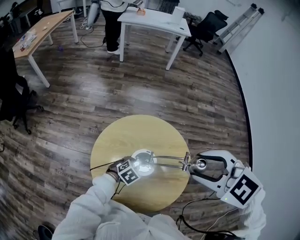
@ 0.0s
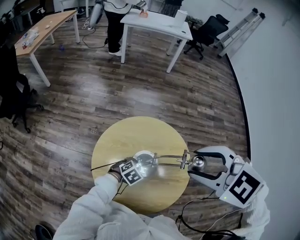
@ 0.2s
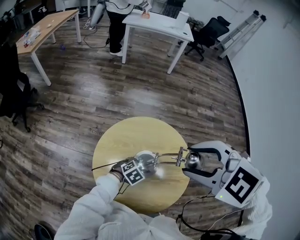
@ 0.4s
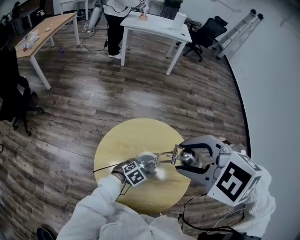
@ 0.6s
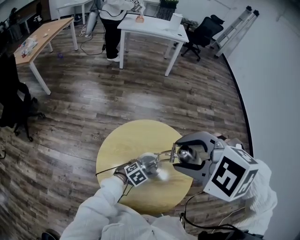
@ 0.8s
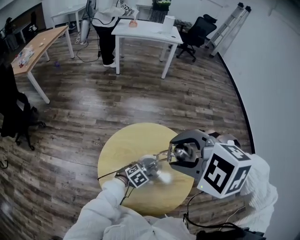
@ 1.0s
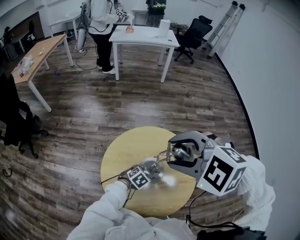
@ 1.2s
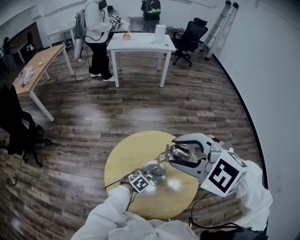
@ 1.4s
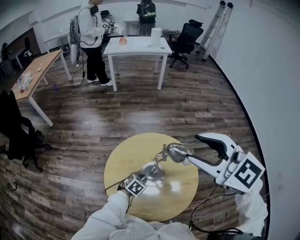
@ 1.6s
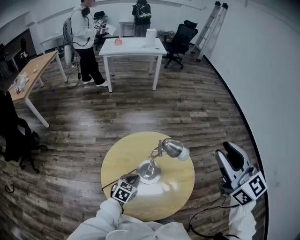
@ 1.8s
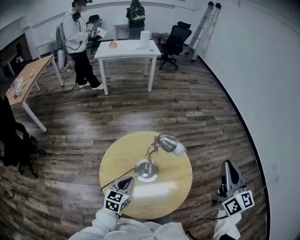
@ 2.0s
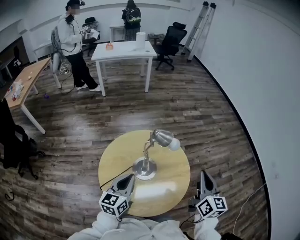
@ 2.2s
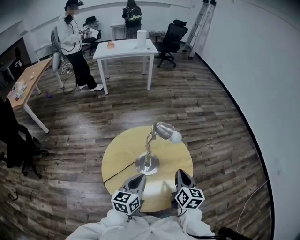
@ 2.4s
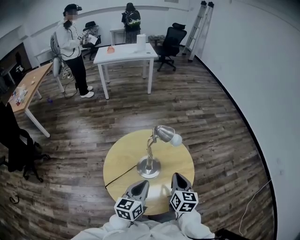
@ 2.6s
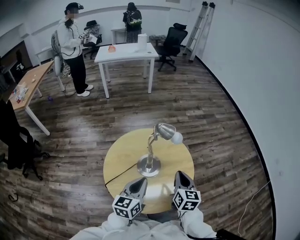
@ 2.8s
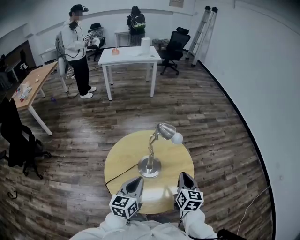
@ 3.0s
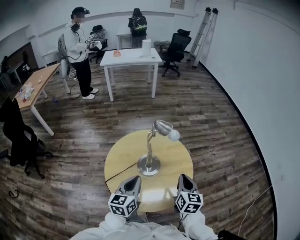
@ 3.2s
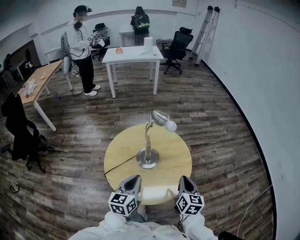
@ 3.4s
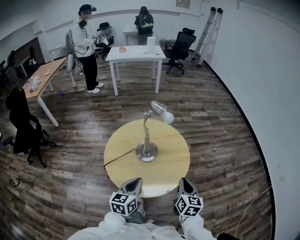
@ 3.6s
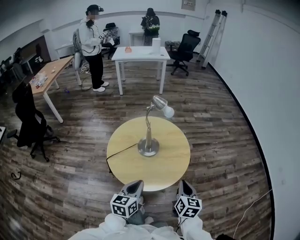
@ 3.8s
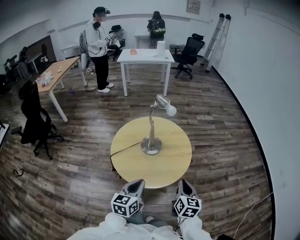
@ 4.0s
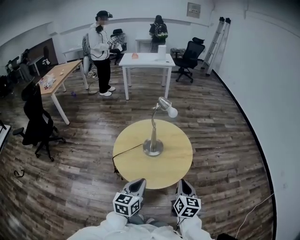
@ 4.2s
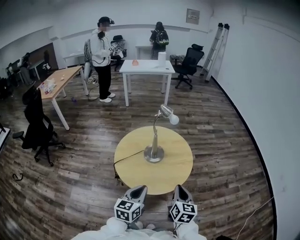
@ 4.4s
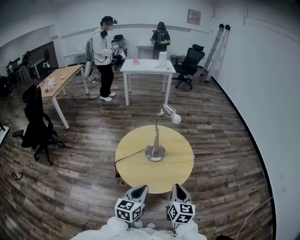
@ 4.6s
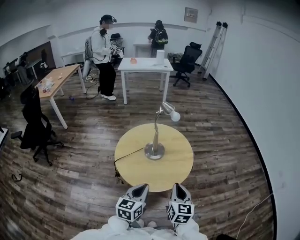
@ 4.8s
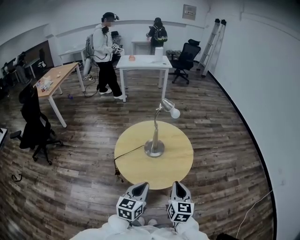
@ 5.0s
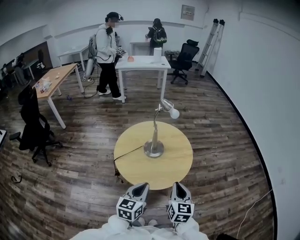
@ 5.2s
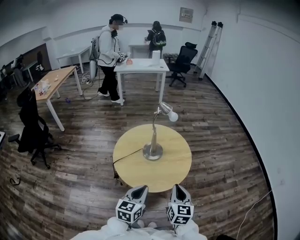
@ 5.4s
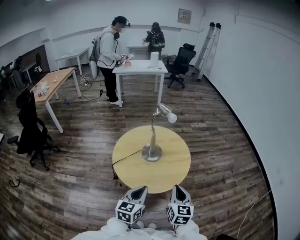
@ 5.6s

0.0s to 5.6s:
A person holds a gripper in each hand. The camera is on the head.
0.0s to 1.4s: The right gripper moves to the left and upward, roughly 10 cm.
1.4s to 2.8s: The right gripper is displaced downward and to the right by roughly 30 cm, changes its angle by roughly 90 degrees, and closes its fingers. The left gripper travels upward and backward by roughly 25 cm, angles its fingers upward, by some 50 degrees, and closes its fingers.
2.8s to 4.2s: The left gripper moves backward, about 20 cm. Meanwhile the right gripper travels backward and to the right by about 20 cm.
4.2s to 5.6s: The right gripper moves to the left, approximately 5 cm.

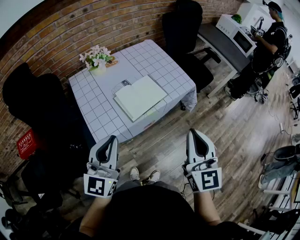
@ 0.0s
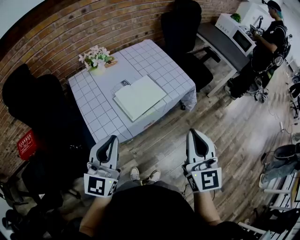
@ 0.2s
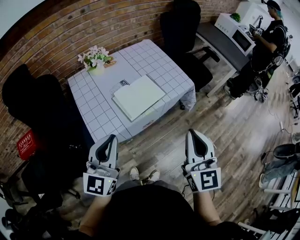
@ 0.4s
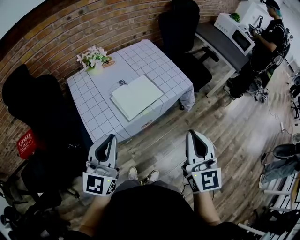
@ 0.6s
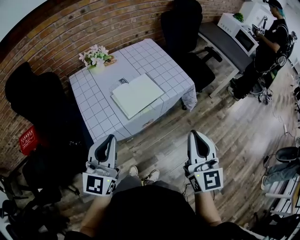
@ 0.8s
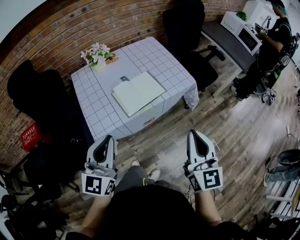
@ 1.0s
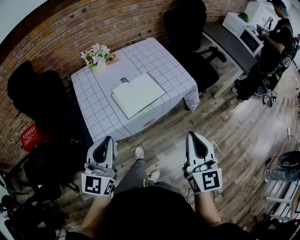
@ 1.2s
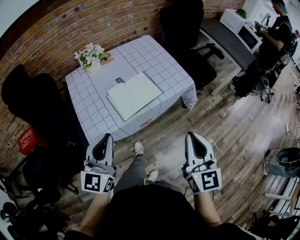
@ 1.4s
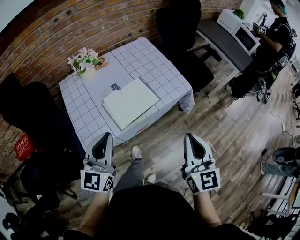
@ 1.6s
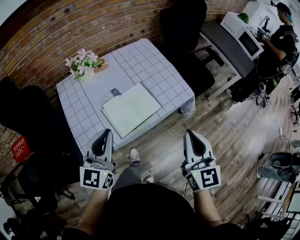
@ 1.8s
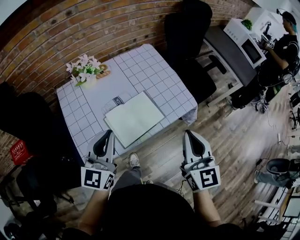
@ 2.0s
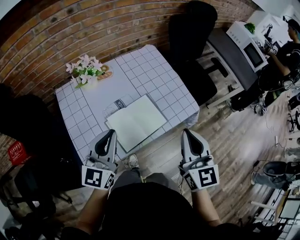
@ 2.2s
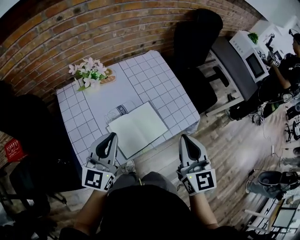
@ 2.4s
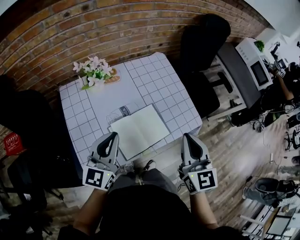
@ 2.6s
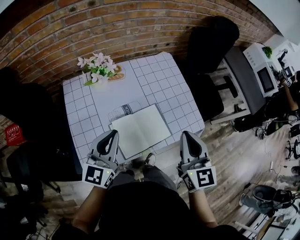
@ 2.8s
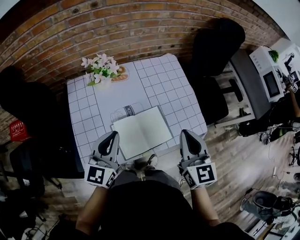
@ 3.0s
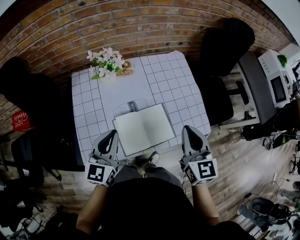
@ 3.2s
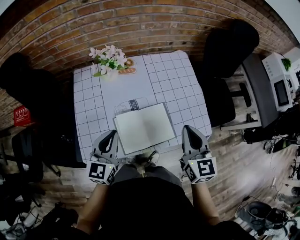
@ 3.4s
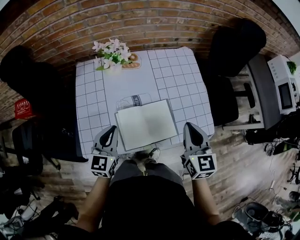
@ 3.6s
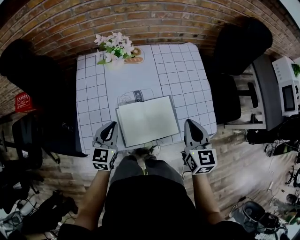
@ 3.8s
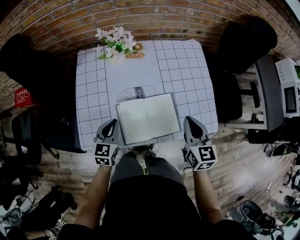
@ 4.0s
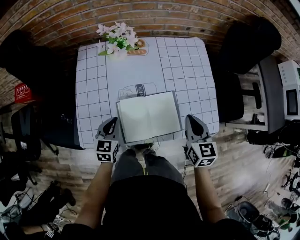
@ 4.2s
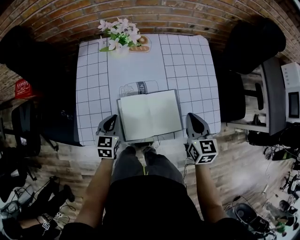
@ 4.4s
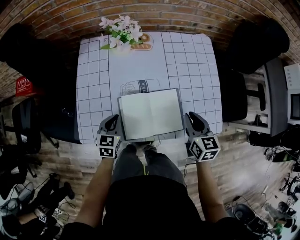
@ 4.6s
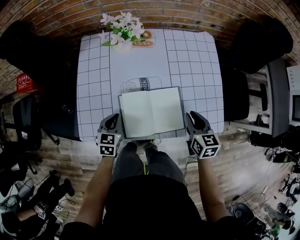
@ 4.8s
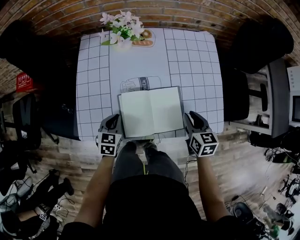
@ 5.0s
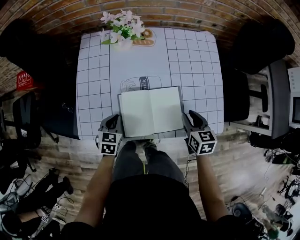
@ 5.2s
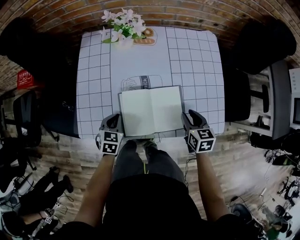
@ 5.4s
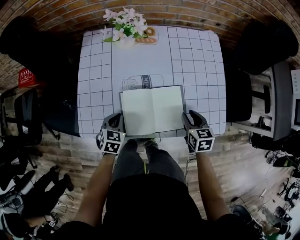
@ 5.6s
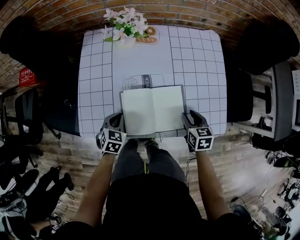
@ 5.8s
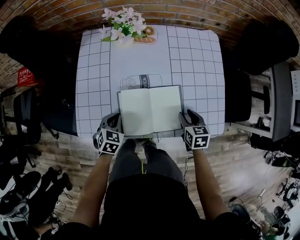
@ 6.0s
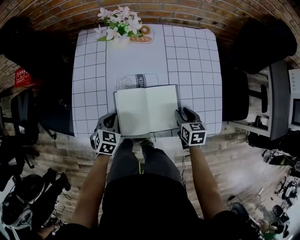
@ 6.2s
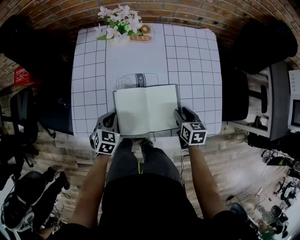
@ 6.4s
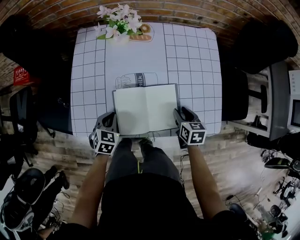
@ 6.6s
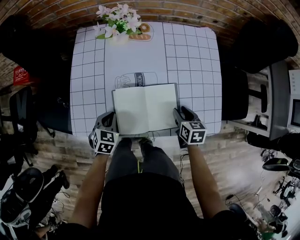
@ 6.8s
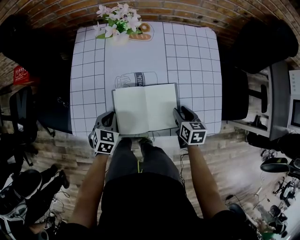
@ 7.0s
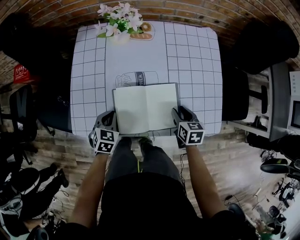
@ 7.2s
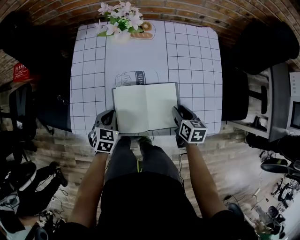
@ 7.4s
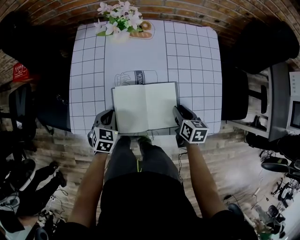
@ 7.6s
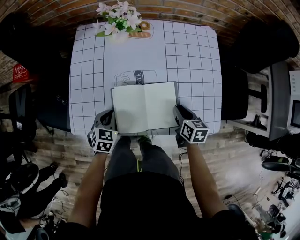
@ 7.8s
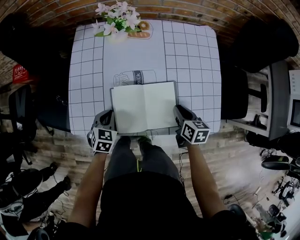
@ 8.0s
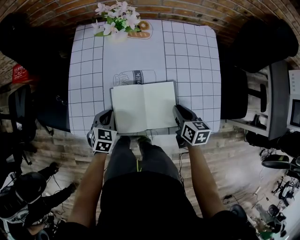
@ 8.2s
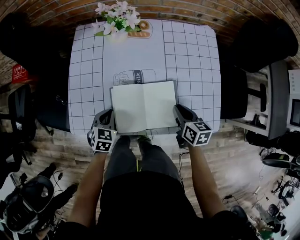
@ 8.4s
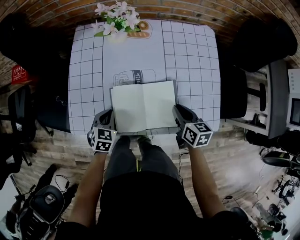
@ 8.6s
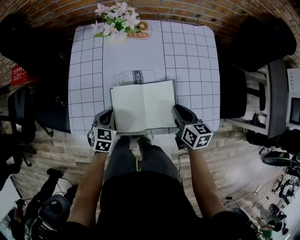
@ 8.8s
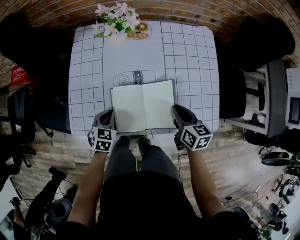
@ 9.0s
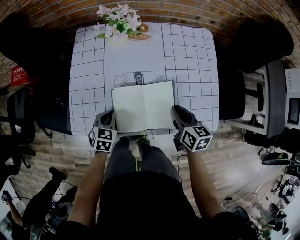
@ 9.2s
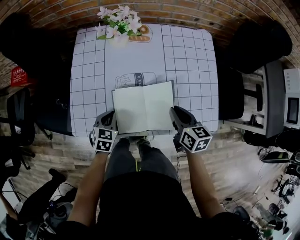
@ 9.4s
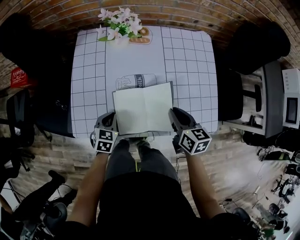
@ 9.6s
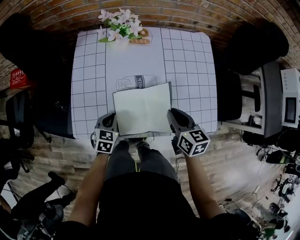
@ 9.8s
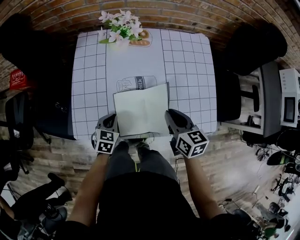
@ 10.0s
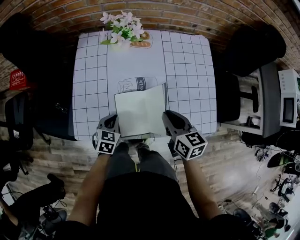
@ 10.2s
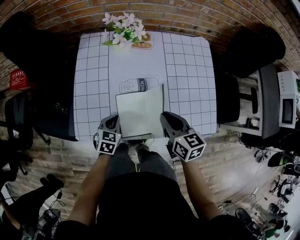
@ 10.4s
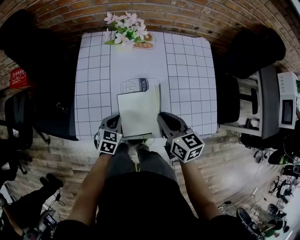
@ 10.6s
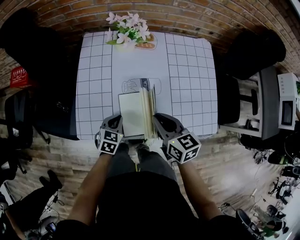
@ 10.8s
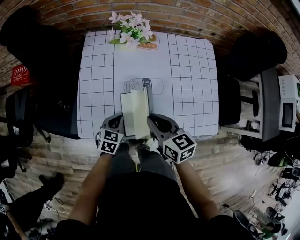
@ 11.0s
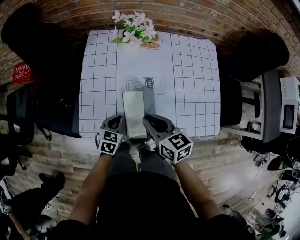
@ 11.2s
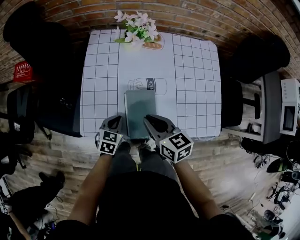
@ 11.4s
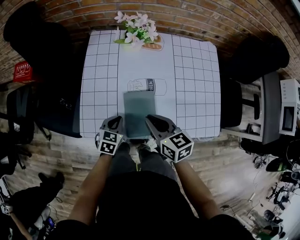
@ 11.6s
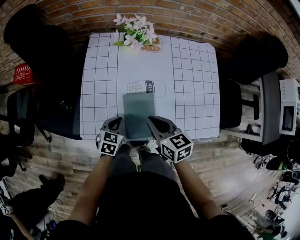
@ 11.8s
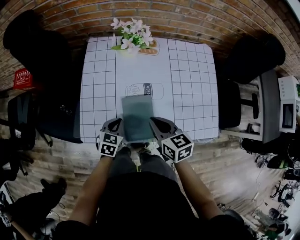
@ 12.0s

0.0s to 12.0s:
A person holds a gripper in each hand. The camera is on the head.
0.0s to 1.6s: The right gripper shifts approximately 10 cm forward, to the right and downward, while the left gripper heads forward, covering approximately 10 cm.
1.6s to 3.0s: The grippers both shift forward by approximately 25 cm.
3.0s to 4.4s: The two grippers go roughly 20 cm downward. The right gripper turns by roughly 20 degrees. Meanwhile the left gripper points its fingers about 30 degrees further downward.
4.4s to 6.0s: The right gripper goes roughly 15 cm downward, swivels roughly 20 degrees, and opens. Meanwhile the left gripper travels downward by roughly 5 cm, and rotates approximately 20 degrees.
6.0s to 7.6s: The grippers move only a little.
7.6s to 9.0s: The right gripper goes some 5 cm upward.
9.0s to 10.4s: The right gripper moves to the left and upward, approximately 10 cm.
10.4s to 12.0s: The right gripper shifts about 5 cm to the left.

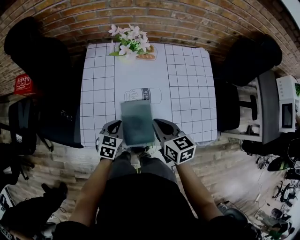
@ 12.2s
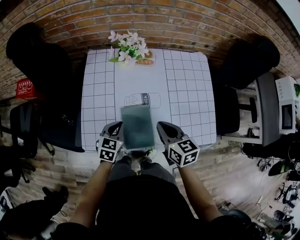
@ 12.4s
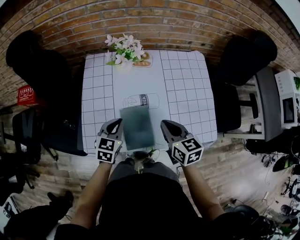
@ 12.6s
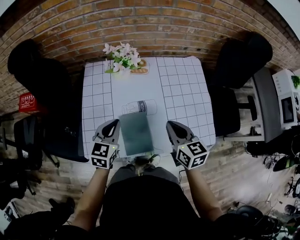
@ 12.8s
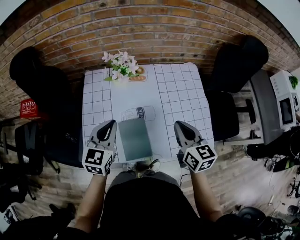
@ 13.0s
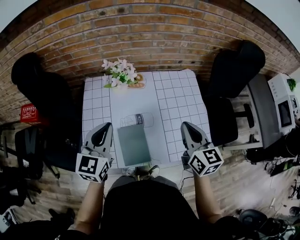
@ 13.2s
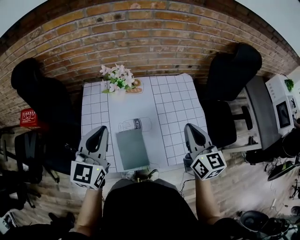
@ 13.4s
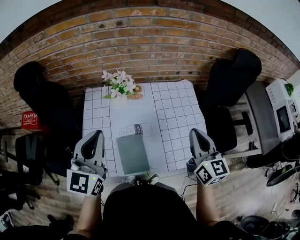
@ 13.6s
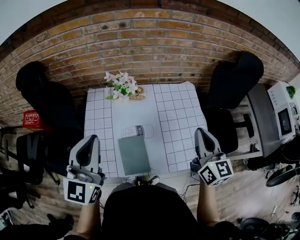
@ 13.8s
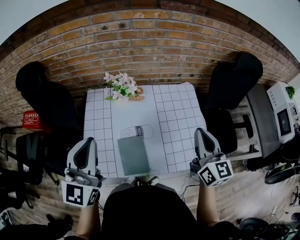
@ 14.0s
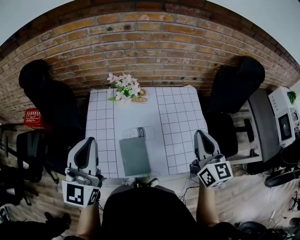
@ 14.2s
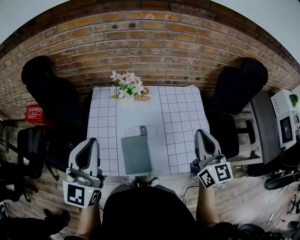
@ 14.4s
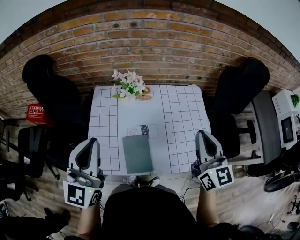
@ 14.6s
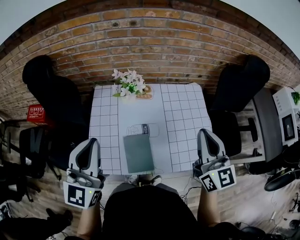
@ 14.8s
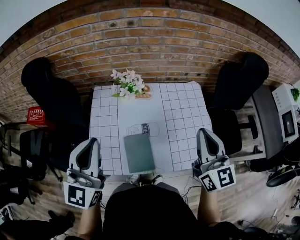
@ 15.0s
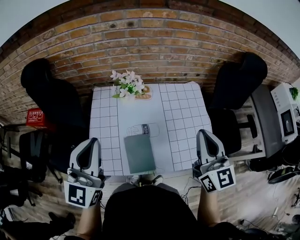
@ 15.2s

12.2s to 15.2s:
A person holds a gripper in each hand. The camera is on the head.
12.2s to 13.8s: The left gripper goes roughly 40 cm upward, and tilts its fingers approximately 50 degrees upward. Meanwhile the right gripper moves upward and to the right, roughly 30 cm, and changes its angle by some 40 degrees.
13.8s to 15.2s: The right gripper ends up about 5 cm from where it was.

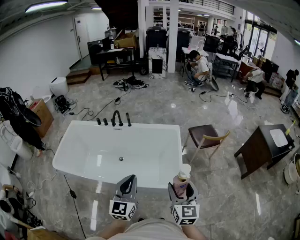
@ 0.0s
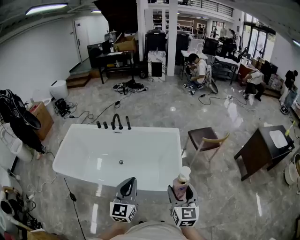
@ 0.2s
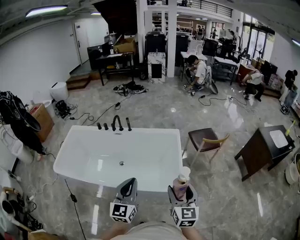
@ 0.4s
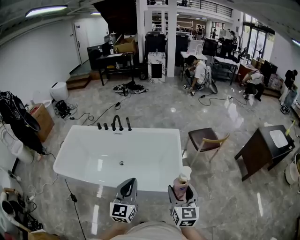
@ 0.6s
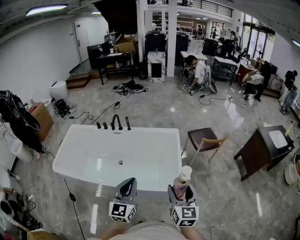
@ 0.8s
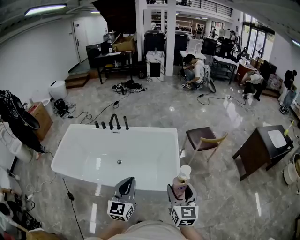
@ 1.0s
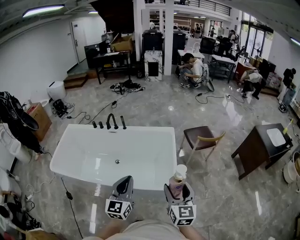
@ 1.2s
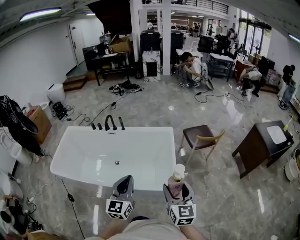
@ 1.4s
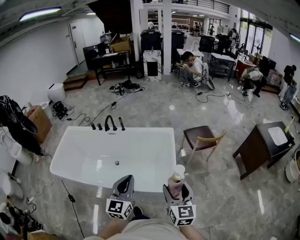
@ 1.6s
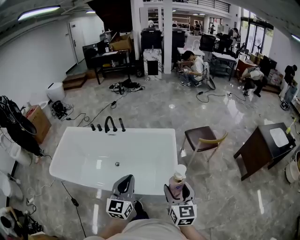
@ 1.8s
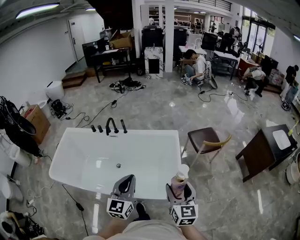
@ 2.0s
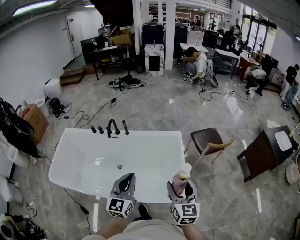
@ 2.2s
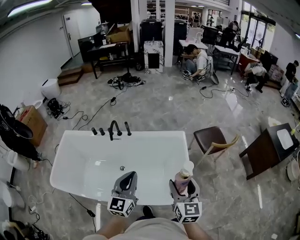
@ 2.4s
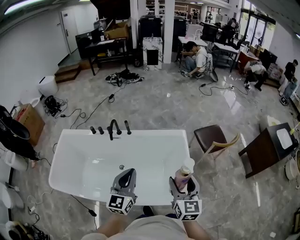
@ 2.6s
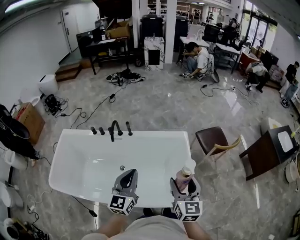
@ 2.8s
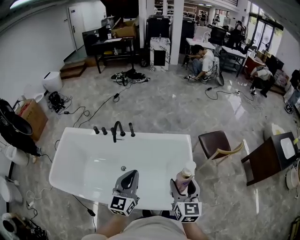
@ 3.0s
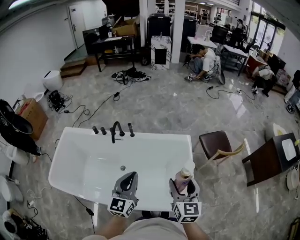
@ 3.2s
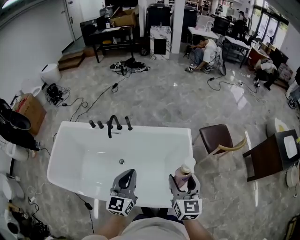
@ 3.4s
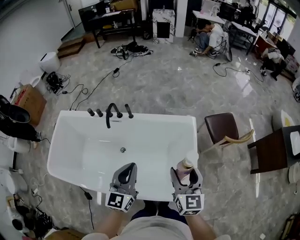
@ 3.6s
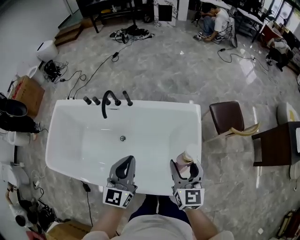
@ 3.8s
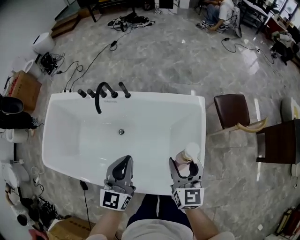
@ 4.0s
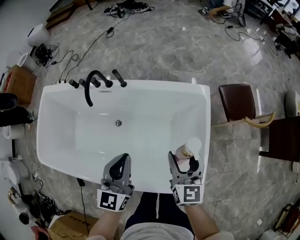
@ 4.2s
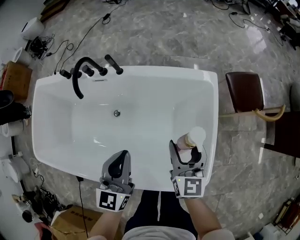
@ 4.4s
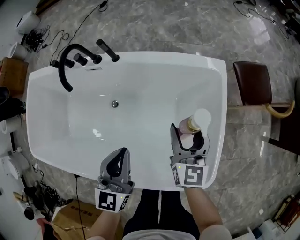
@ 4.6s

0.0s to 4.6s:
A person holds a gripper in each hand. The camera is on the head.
0.0s to 1.6s: The left gripper is displaced to the right by approximately 5 cm.
1.6s to 3.0s: The grippers both shift forward and to the left by about 30 cm.
3.0s to 4.6s: The grippers both shift downward and forward by roughly 35 cm.
